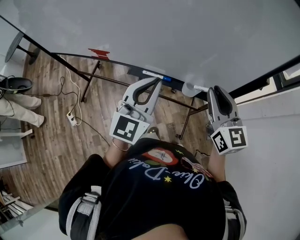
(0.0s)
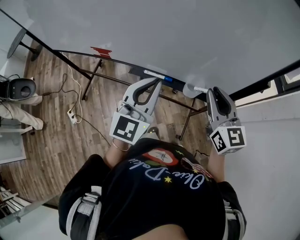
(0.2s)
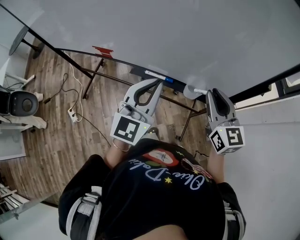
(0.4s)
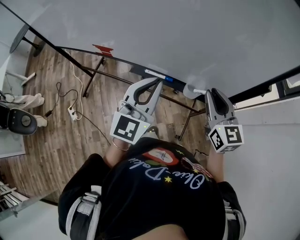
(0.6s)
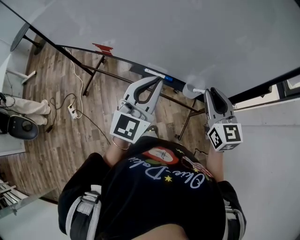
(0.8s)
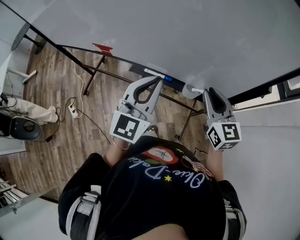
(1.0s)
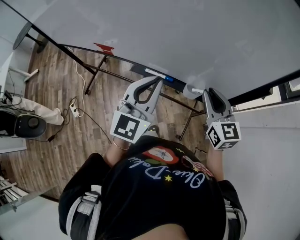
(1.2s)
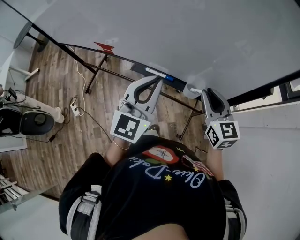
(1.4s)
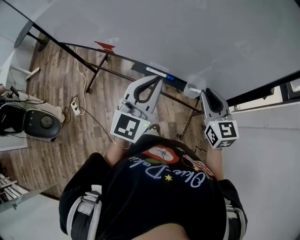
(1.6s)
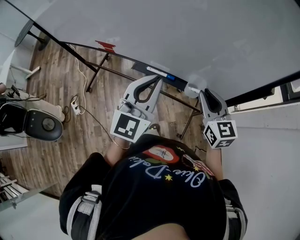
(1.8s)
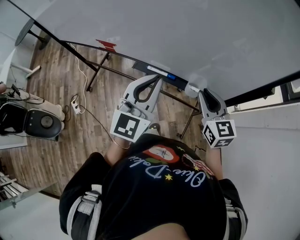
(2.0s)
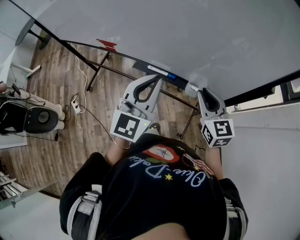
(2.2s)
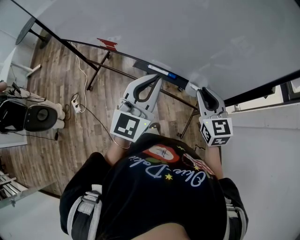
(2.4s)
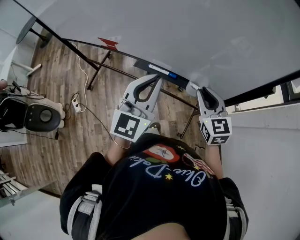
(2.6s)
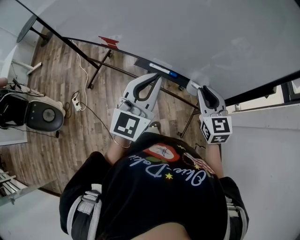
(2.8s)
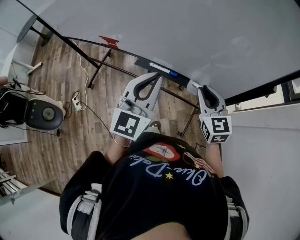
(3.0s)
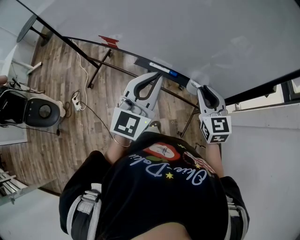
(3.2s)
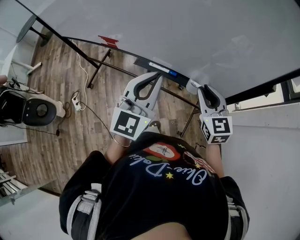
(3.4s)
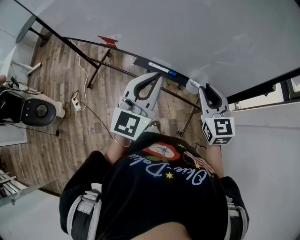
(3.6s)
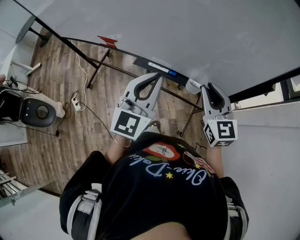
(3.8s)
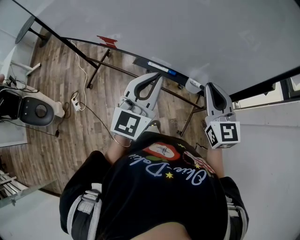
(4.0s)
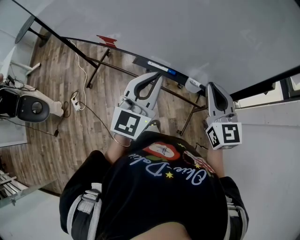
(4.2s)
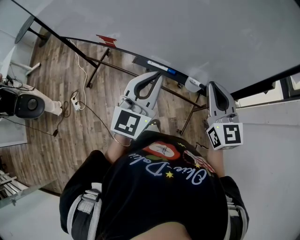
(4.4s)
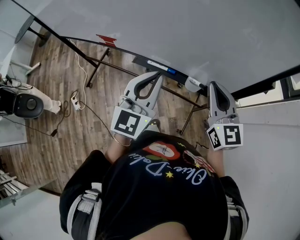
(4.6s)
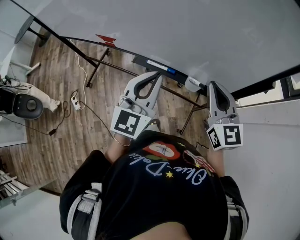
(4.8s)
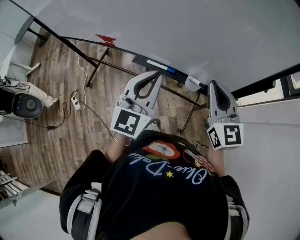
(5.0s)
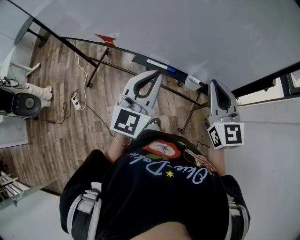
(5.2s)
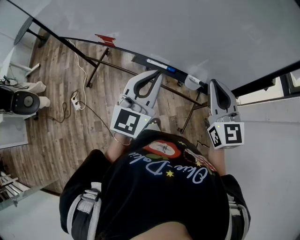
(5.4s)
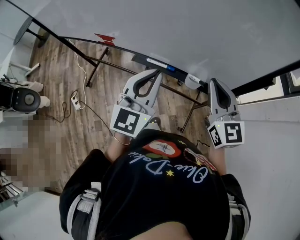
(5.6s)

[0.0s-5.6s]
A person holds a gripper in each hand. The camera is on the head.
0.0s to 1.4s: The right gripper travels downward by approximately 5 cm.
1.4s to 2.8s: The grippers make only small movements.
2.8s to 4.2s: The right gripper goes some 5 cm upward.
4.2s to 5.6s: Neither gripper changes place.

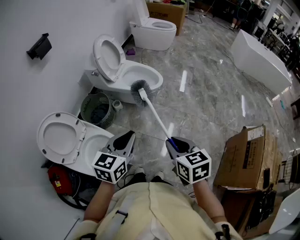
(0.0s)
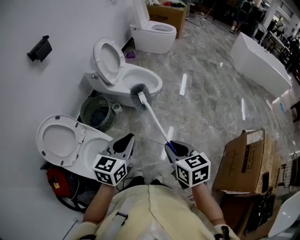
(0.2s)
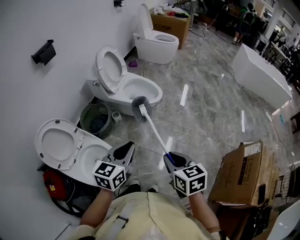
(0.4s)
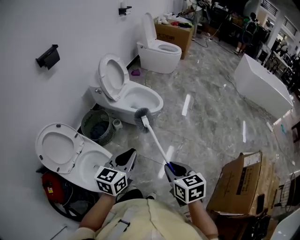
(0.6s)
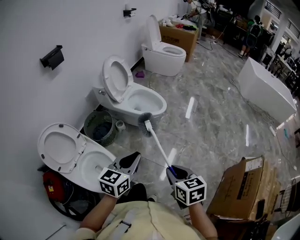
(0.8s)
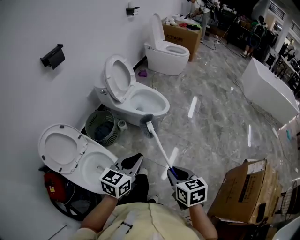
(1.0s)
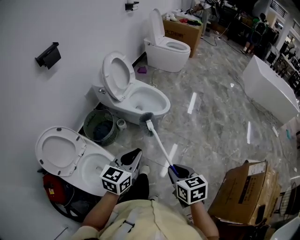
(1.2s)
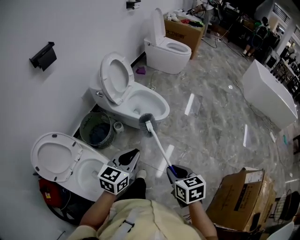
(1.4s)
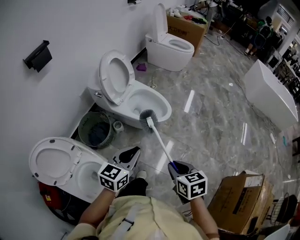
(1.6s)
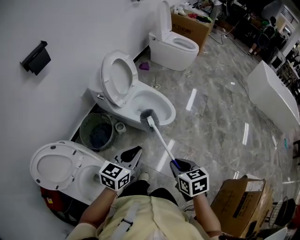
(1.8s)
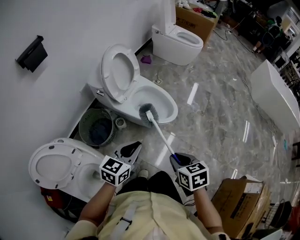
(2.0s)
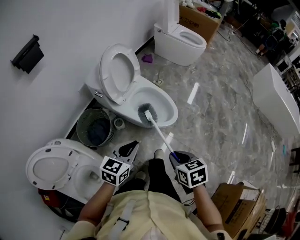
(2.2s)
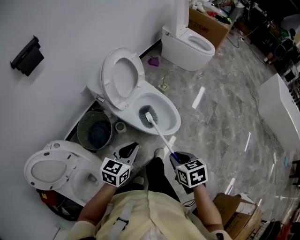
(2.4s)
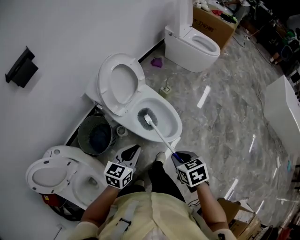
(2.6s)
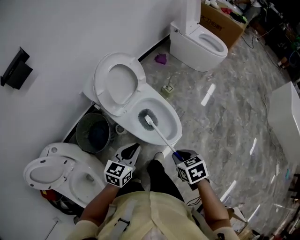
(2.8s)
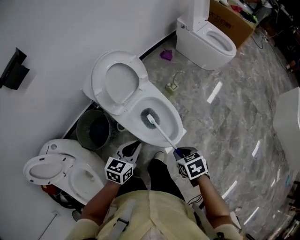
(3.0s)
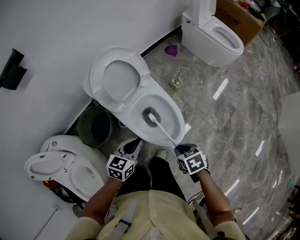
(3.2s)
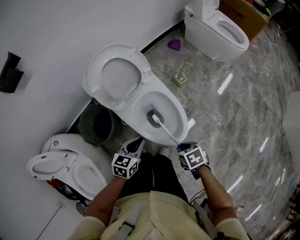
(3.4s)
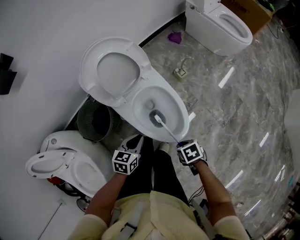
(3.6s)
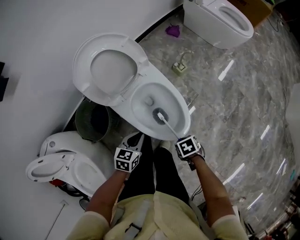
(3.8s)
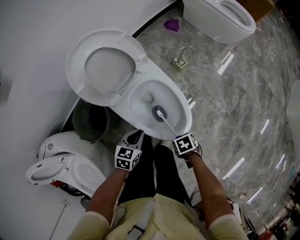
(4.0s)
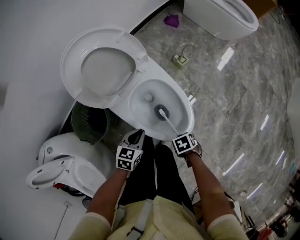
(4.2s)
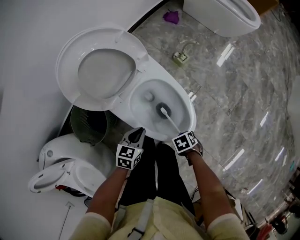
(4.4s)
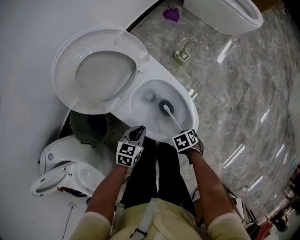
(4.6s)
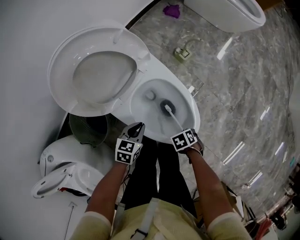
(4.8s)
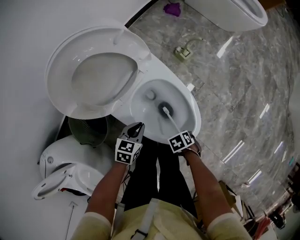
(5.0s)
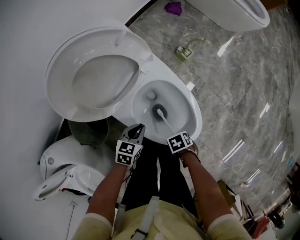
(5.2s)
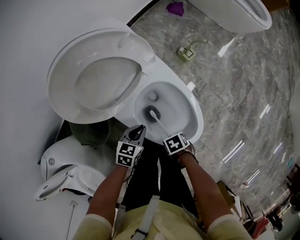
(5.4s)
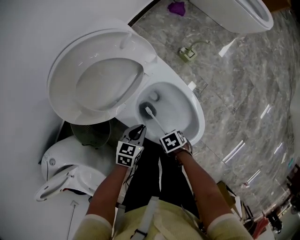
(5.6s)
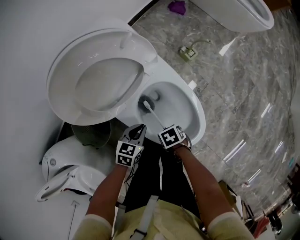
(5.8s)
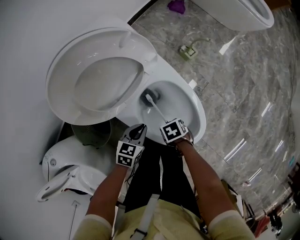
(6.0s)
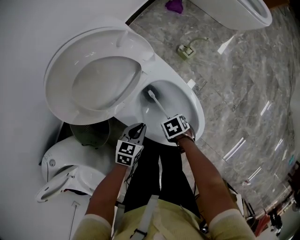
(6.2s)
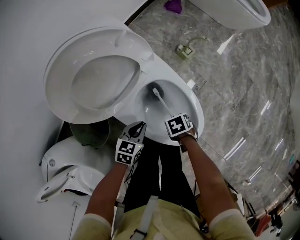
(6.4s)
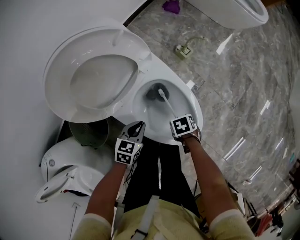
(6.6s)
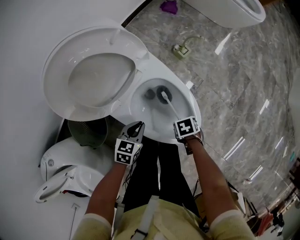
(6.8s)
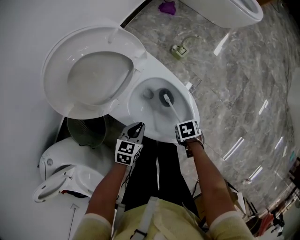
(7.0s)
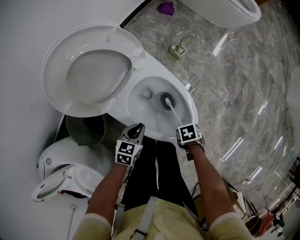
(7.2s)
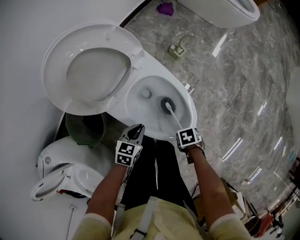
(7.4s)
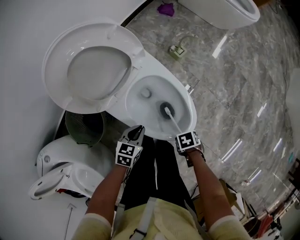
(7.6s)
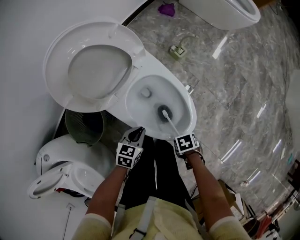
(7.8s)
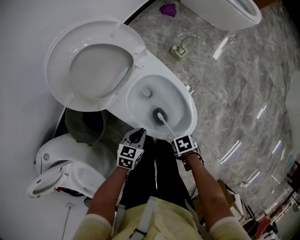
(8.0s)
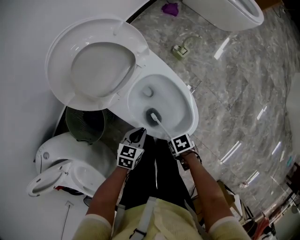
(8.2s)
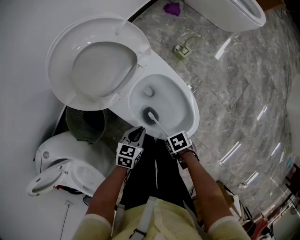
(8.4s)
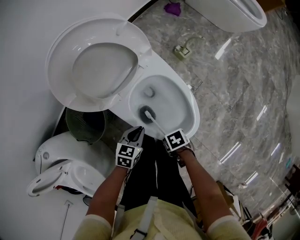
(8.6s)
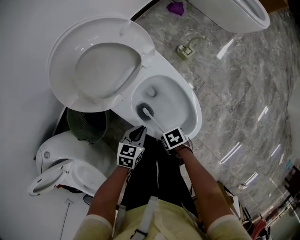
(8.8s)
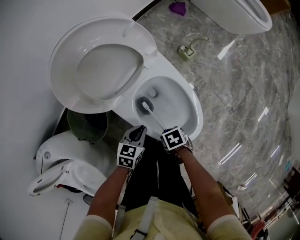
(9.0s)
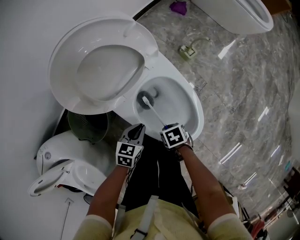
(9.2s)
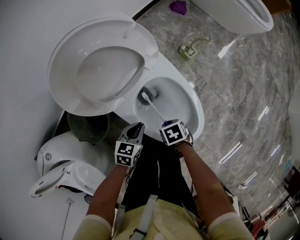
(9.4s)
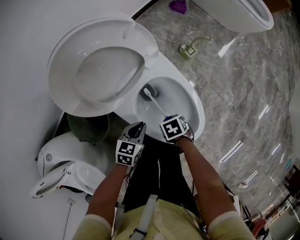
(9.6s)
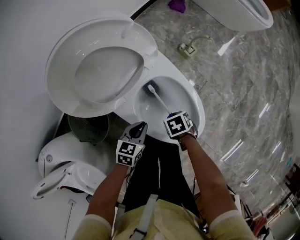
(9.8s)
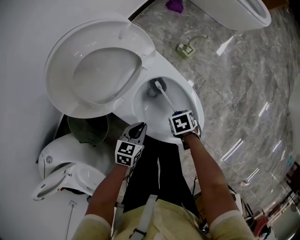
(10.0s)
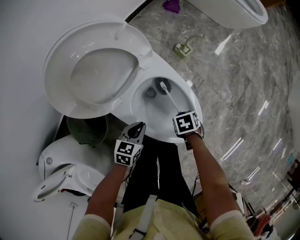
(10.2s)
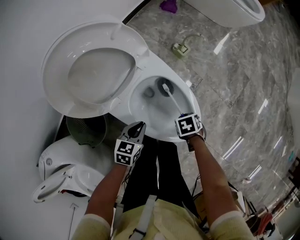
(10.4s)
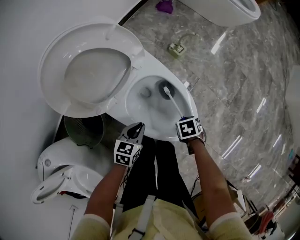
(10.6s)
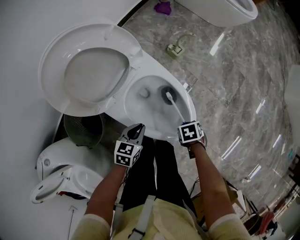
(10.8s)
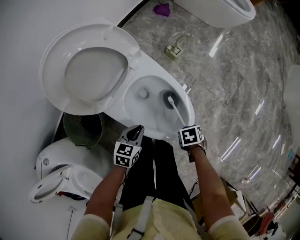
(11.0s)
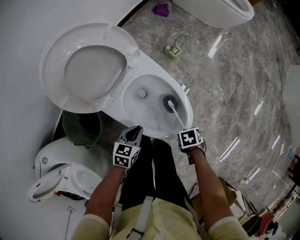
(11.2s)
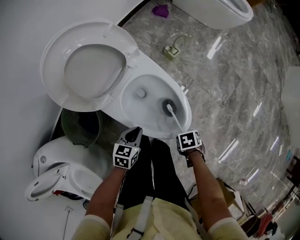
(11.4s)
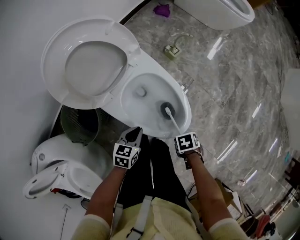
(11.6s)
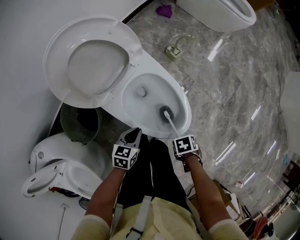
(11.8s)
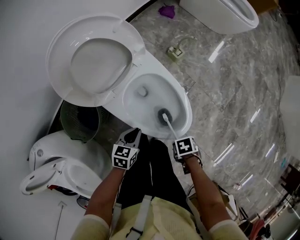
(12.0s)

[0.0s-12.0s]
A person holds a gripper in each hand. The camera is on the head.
0.0s to 1.6s: The left gripper moves some 20 cm.
1.6s to 3.0s: The left gripper moves some 35 cm, and changes its angle by some 20 degrees.
3.0s to 4.4s: The left gripper moves downward, approximately 20 cm.
4.4s to 6.0s: The left gripper moves approximately 10 cm.
6.0s to 7.6s: The left gripper shifts by roughly 5 cm.
10.4s to 12.0s: The left gripper ends up about 5 cm from where it was.

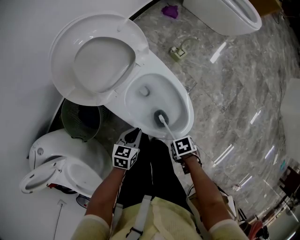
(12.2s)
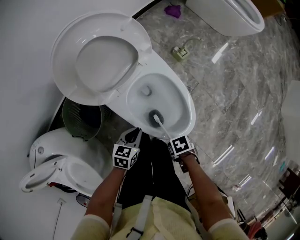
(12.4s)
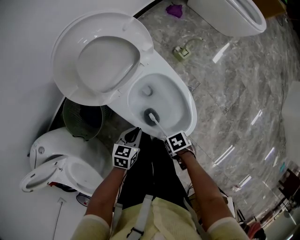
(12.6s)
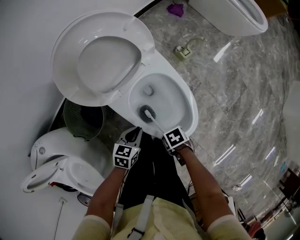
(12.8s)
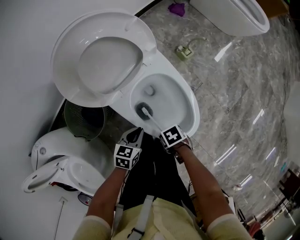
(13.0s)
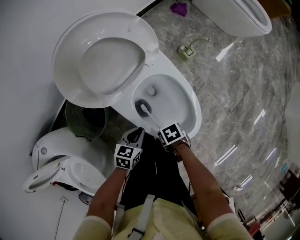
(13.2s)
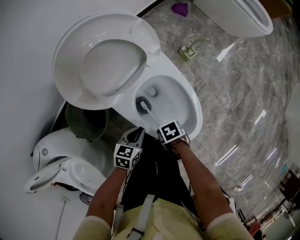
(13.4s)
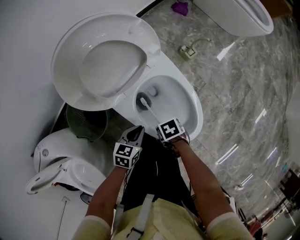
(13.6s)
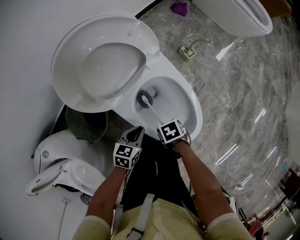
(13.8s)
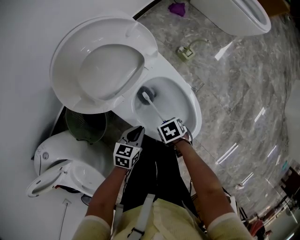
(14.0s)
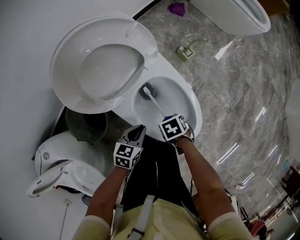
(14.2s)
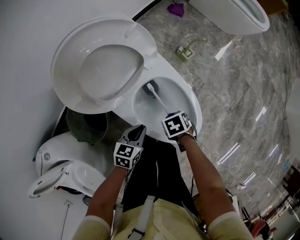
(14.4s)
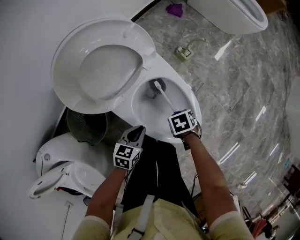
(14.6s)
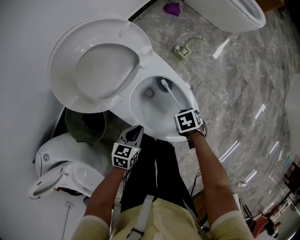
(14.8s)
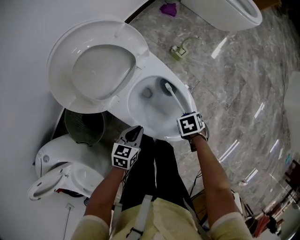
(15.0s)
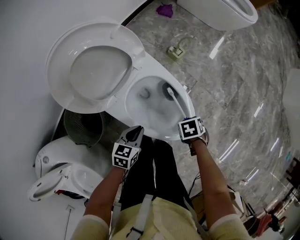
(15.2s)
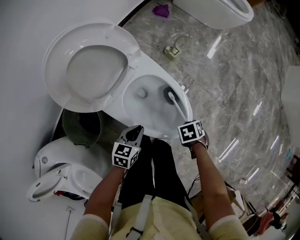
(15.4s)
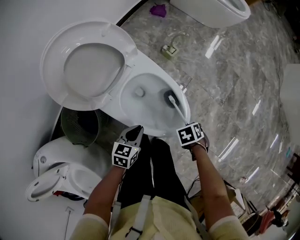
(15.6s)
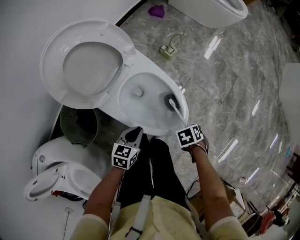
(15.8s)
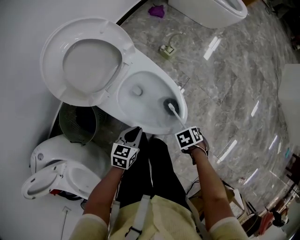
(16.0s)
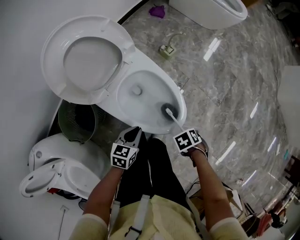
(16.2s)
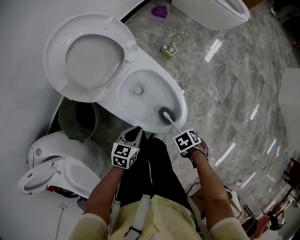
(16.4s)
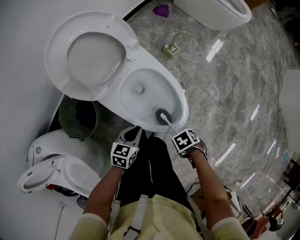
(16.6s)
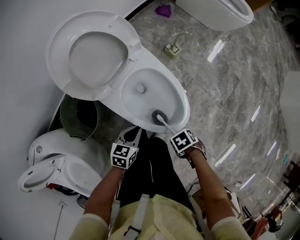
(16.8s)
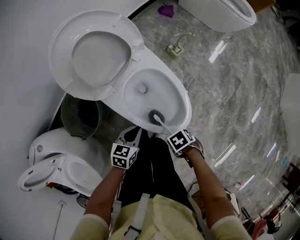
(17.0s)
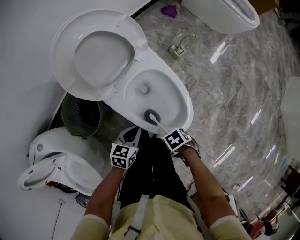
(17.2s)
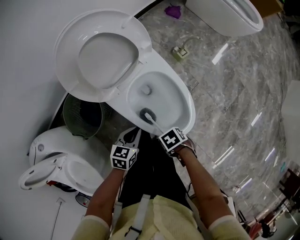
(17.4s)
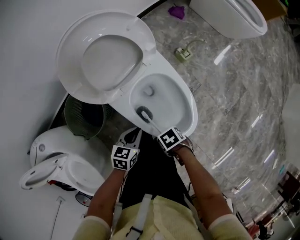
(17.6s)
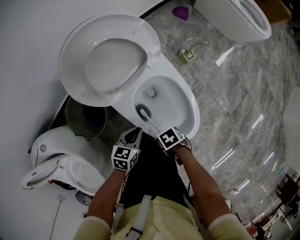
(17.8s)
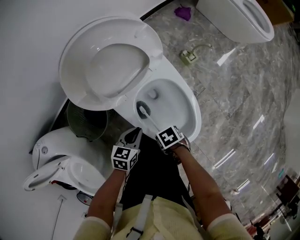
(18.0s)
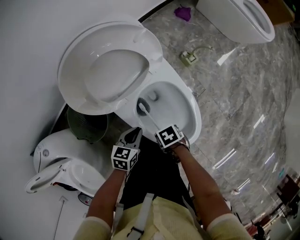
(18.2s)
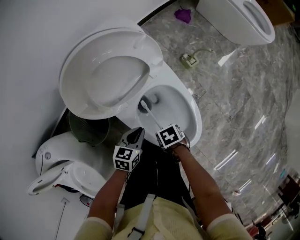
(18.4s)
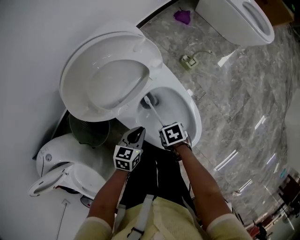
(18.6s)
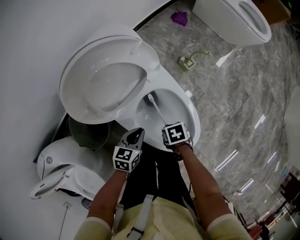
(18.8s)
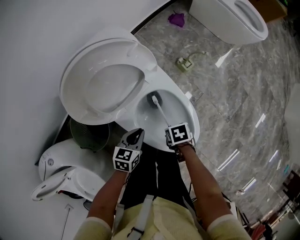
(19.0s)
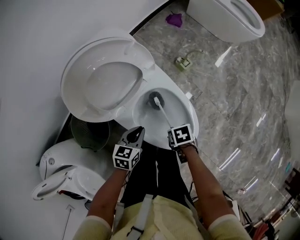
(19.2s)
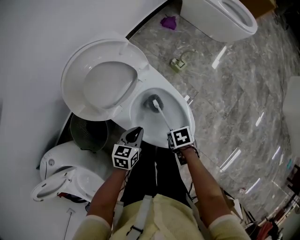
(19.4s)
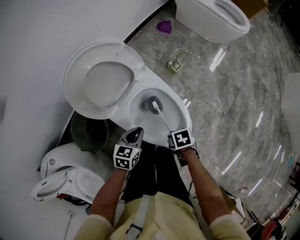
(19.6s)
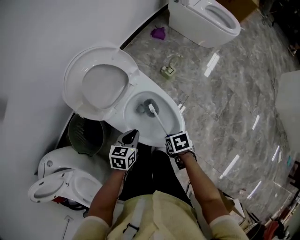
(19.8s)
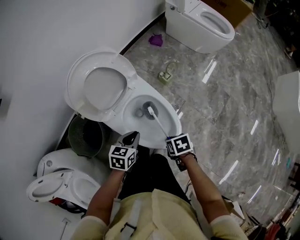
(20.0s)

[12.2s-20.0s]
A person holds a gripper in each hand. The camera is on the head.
13.8s to 15.4s: The left gripper changes place by about 5 cm.
16.8s to 18.4s: The left gripper changes place by some 10 cm.
18.4s to 20.0s: The left gripper moves upward, roughly 10 cm.
